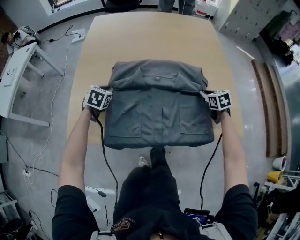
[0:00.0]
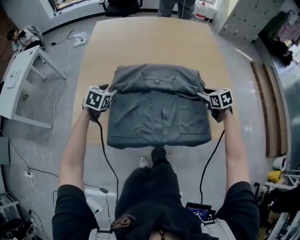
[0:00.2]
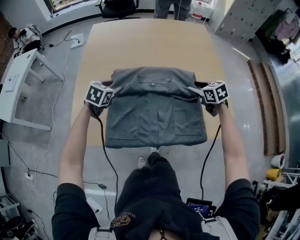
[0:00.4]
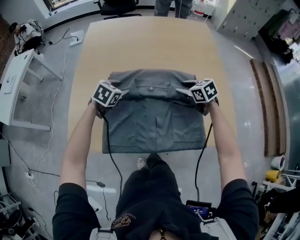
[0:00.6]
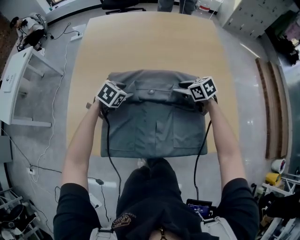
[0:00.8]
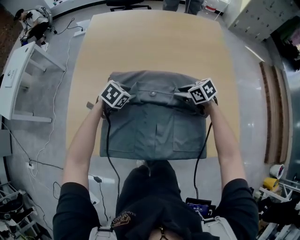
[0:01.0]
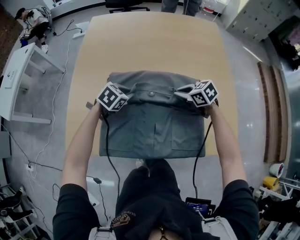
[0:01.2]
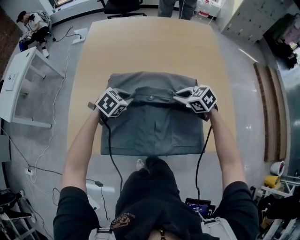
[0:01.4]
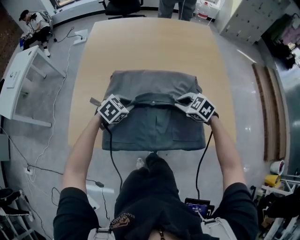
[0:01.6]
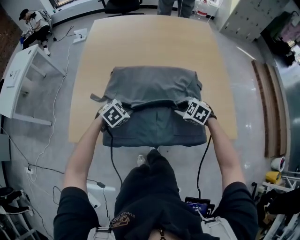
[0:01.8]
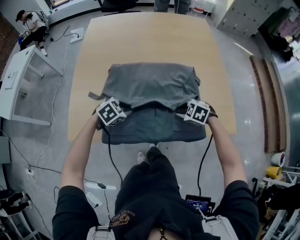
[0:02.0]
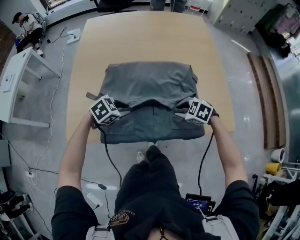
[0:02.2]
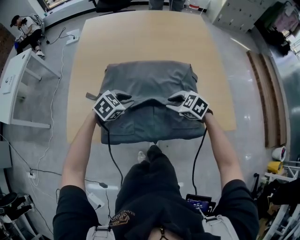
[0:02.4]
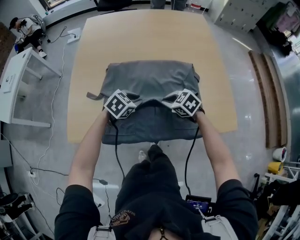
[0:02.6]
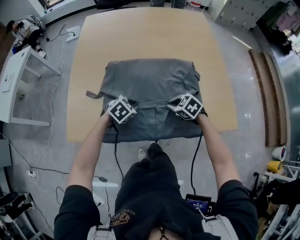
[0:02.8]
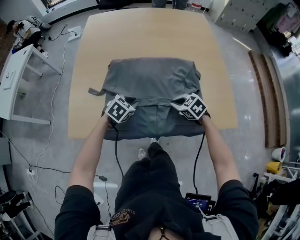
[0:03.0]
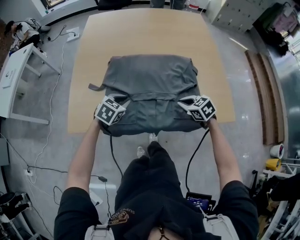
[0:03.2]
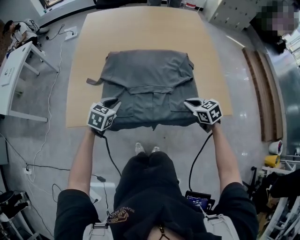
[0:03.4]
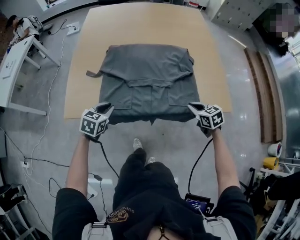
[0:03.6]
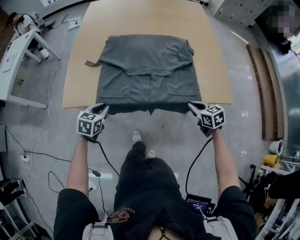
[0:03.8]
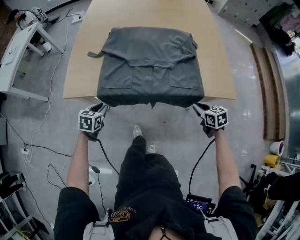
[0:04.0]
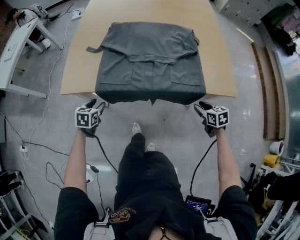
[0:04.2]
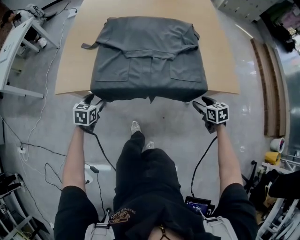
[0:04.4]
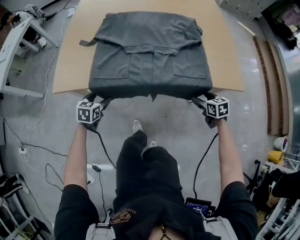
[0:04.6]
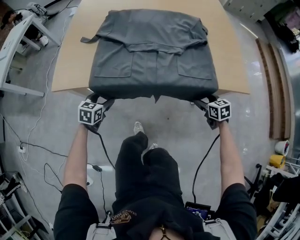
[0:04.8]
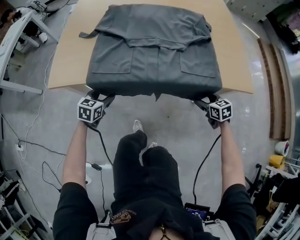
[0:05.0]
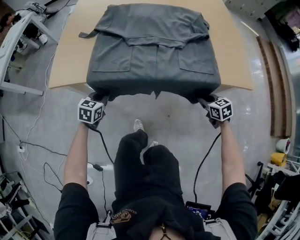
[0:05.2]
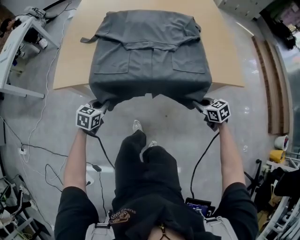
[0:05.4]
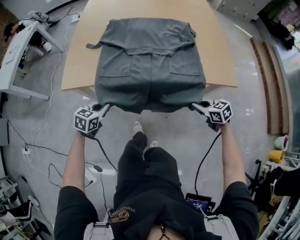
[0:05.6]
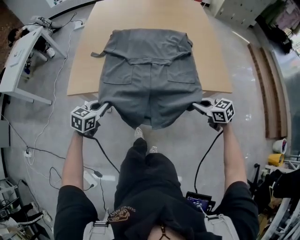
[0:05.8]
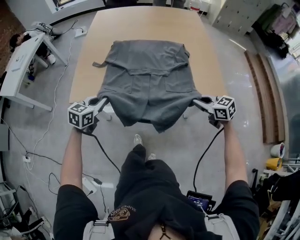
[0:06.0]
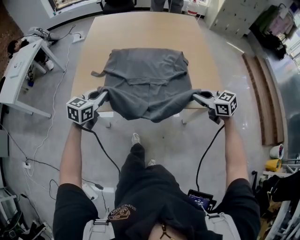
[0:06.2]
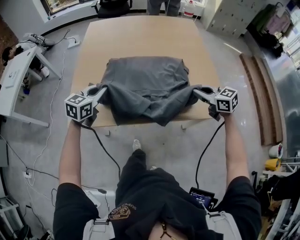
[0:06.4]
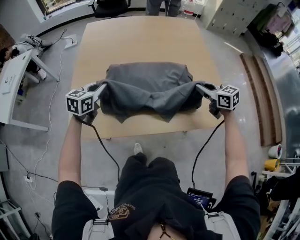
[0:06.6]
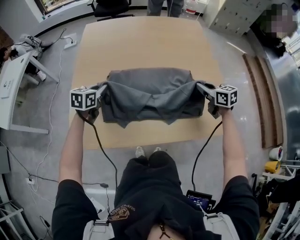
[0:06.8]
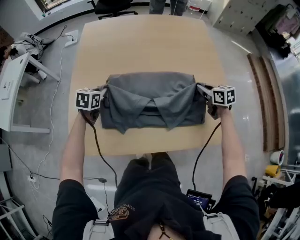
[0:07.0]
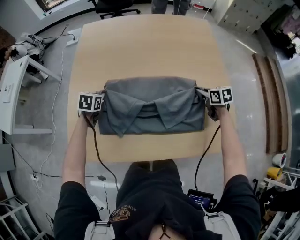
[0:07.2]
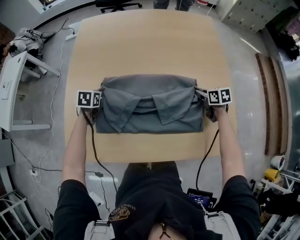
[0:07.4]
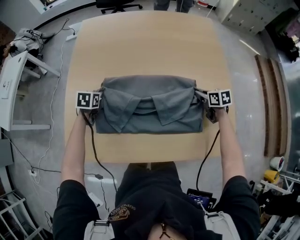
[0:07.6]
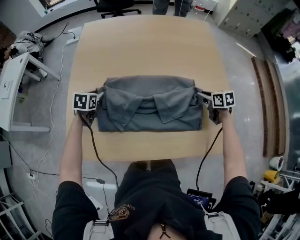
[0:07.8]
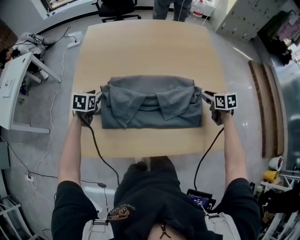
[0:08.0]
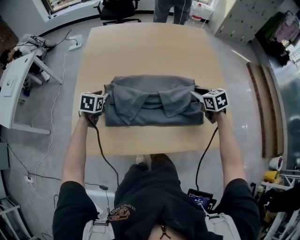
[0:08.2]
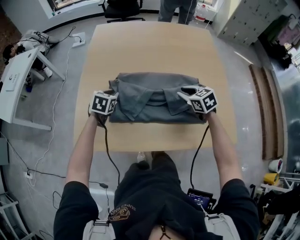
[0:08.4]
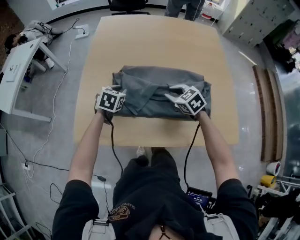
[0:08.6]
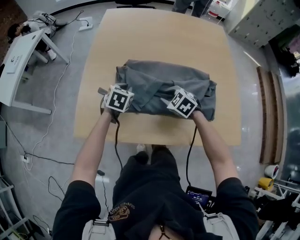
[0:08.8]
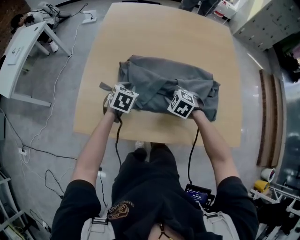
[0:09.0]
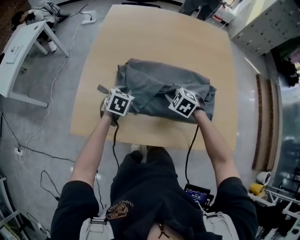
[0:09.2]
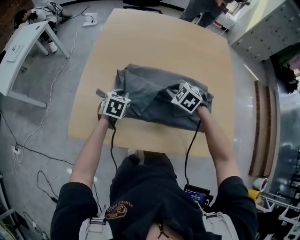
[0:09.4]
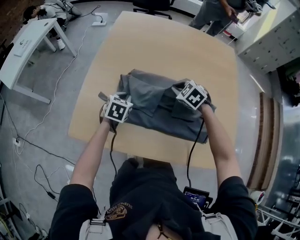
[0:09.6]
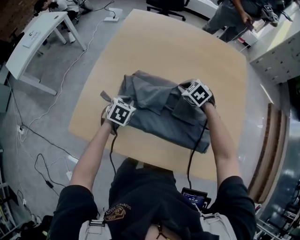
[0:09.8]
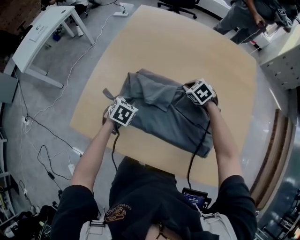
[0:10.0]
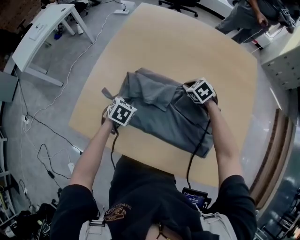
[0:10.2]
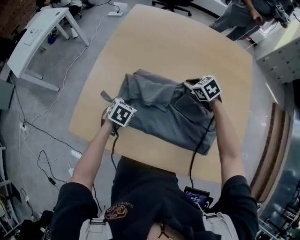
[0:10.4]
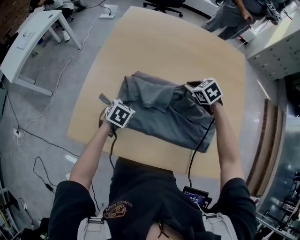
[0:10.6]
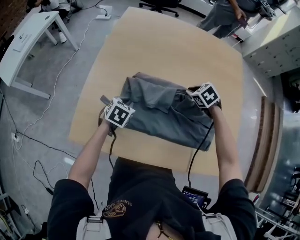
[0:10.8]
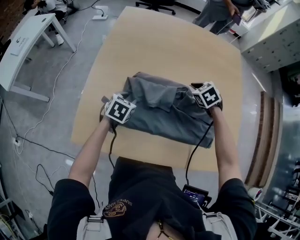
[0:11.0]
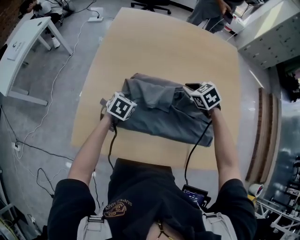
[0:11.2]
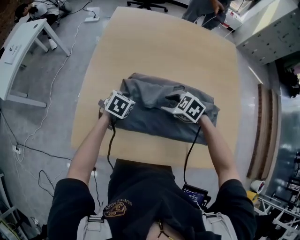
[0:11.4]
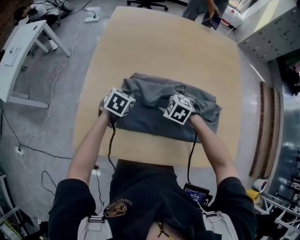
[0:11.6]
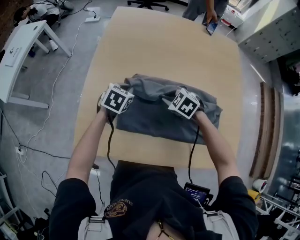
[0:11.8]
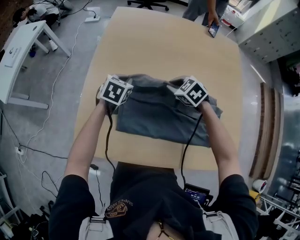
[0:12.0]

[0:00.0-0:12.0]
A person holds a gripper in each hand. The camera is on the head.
0:00.0 to 0:01.6: The left gripper goes up and down, about 10 cm each way, reversing 2 times, rotates some 30 degrees, and opens and closes again. Meanwhile the right gripper swings up and down, about 10 cm each way, with 2 reversals, turns by roughly 40 degrees, and opens and closes again.
0:01.6 to 0:03.0: The left gripper shifts by about 5 cm. Meanwhile the right gripper swings up and down, approximately 5 cm each way, with 2 reversals.
0:03.0 to 0:04.4: The right gripper travels backward, to the right and downward by approximately 25 cm, swivels roughly 30 degrees, and opens its fingers. Meanwhile the left gripper travels to the left, backward and downward by roughly 25 cm, swivels about 30 degrees, and opens.
0:04.4 to 0:06.0: The grippers both shift upward by some 20 cm. The right gripper swivels approximately 30 degrees, and closes. Meanwhile the left gripper rotates some 20 degrees, and closes up.
0:06.0 to 0:07.6: Both grippers travel together forward, about 35 cm. The right gripper rotates some 30 degrees. The left gripper rotates roughly 30 degrees.
0:07.6 to 0:09.0: The right gripper shifts roughly 30 cm to the left, and rolls counterclockwise, seen from behind, by some 70 degrees, while the left gripper travels backward by roughly 10 cm, and opens, then closes once more.
0:09.0 to 0:10.4: The right gripper travels forward and to the right by roughly 20 cm, and rotates some 20 degrees.
0:10.4 to 0:12.0: The left gripper goes roughly 15 cm forward and upward, and opens, then closes once more; the right gripper heads to the left, covering approximately 10 cm, and opens and closes again.

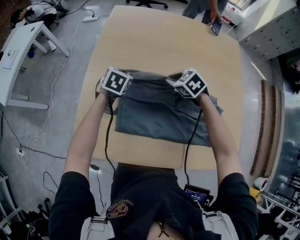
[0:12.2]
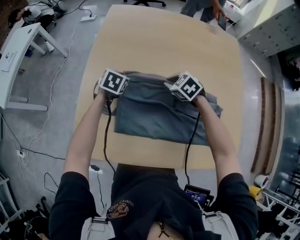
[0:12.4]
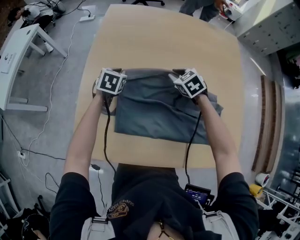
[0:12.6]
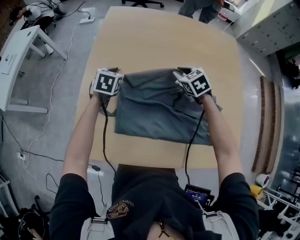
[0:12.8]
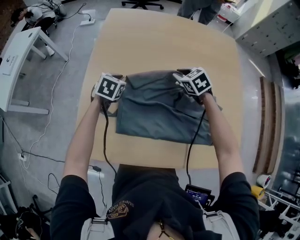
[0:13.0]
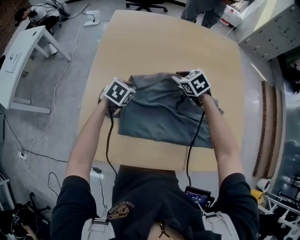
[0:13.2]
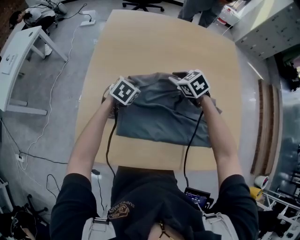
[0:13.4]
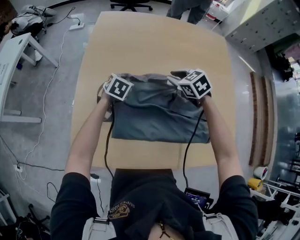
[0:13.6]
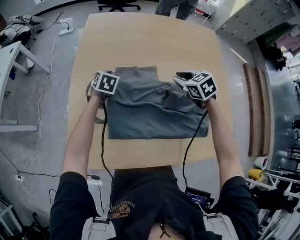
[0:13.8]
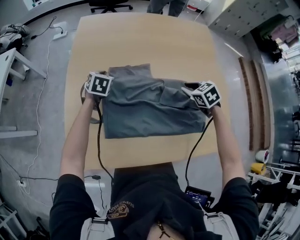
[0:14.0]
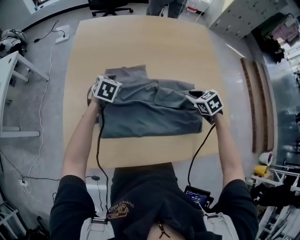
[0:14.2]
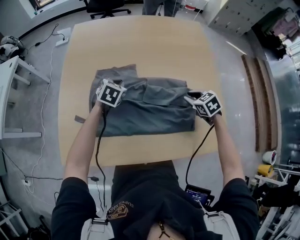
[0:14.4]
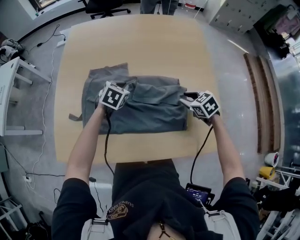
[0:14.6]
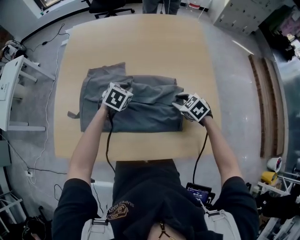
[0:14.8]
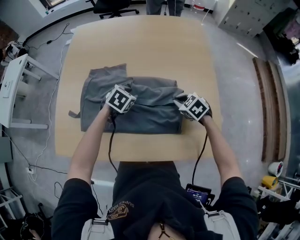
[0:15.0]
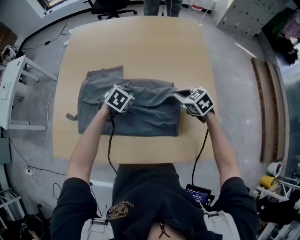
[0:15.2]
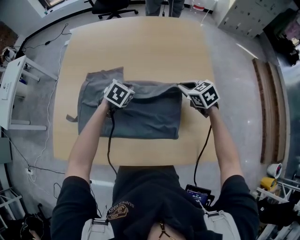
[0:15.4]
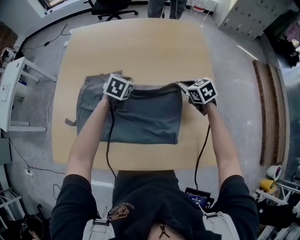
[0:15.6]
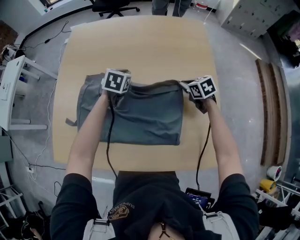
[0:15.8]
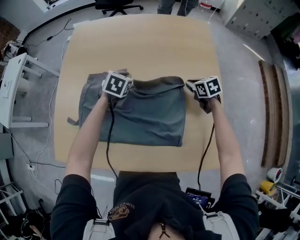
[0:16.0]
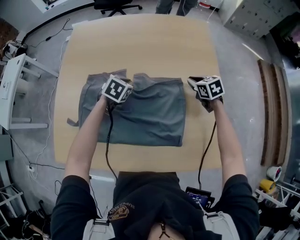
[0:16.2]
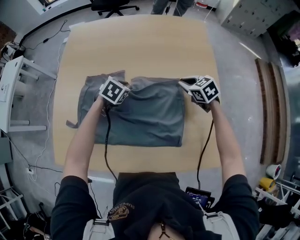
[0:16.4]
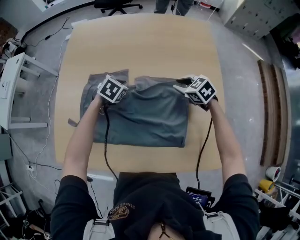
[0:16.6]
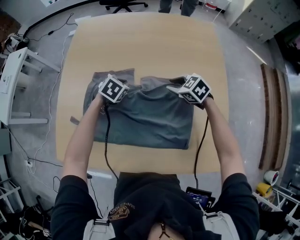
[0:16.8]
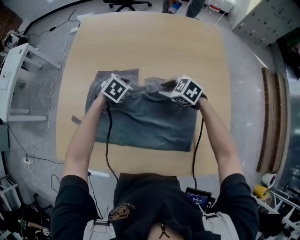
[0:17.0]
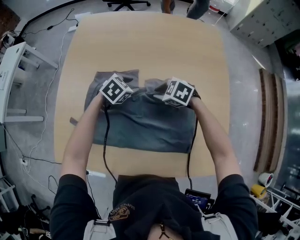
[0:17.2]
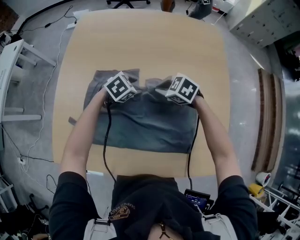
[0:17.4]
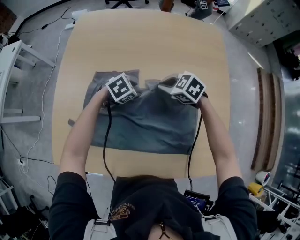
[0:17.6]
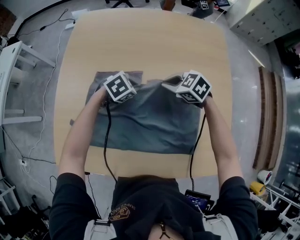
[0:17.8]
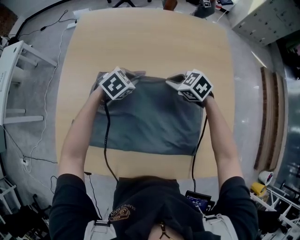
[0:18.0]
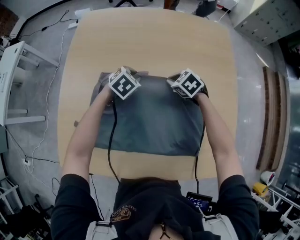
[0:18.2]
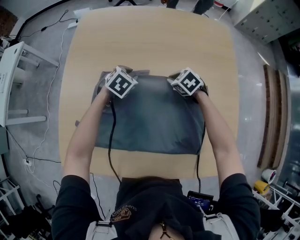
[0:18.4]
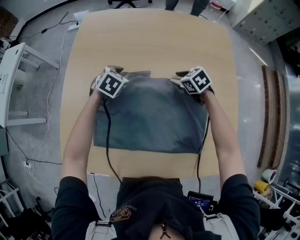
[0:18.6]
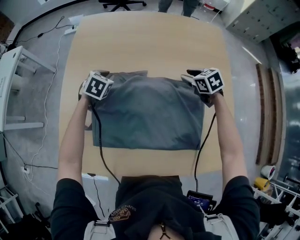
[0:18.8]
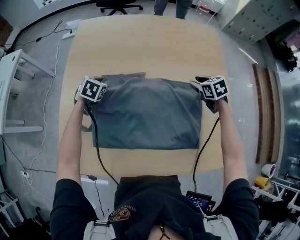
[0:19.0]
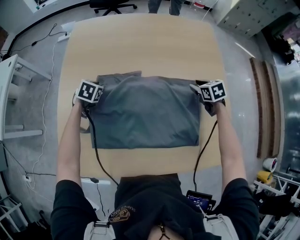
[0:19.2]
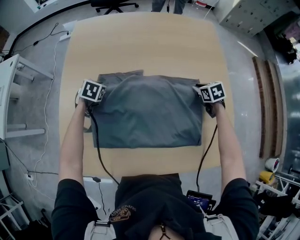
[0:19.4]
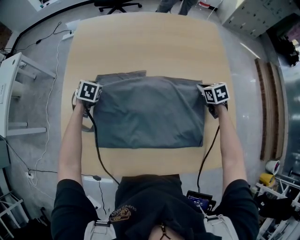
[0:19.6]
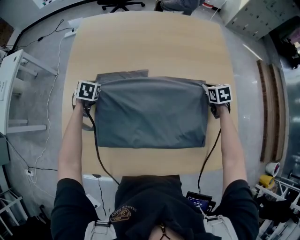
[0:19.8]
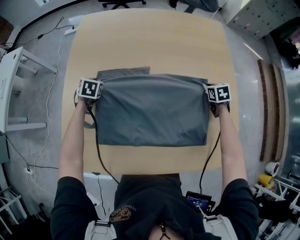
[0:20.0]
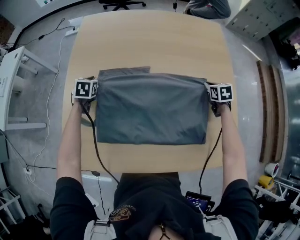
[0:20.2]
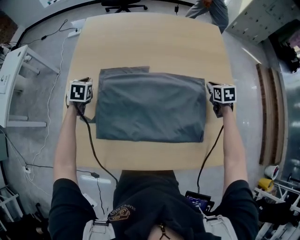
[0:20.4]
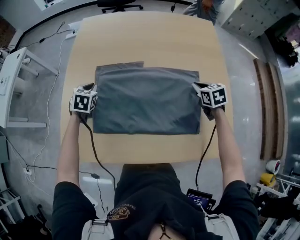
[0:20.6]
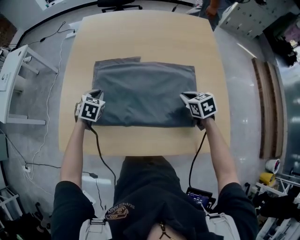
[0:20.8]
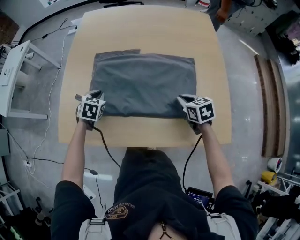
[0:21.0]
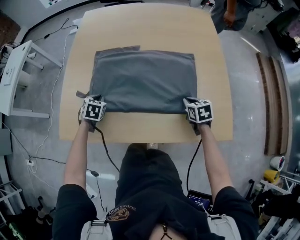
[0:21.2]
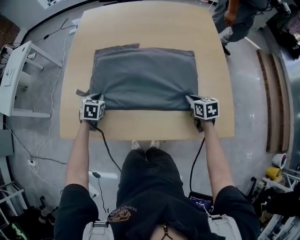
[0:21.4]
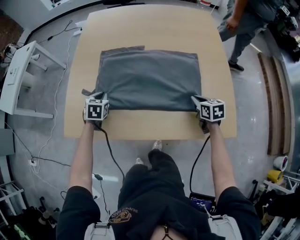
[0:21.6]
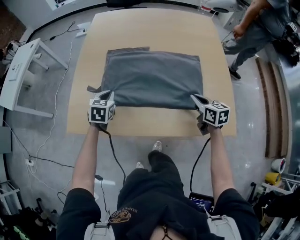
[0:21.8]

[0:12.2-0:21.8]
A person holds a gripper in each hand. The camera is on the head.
0:12.2 to 0:13.8: The right gripper moves to the right, about 10 cm, and changes its angle by approximately 20 degrees; the left gripper heads forward, covering roughly 5 cm.
0:13.8 to 0:15.4: The left gripper goes about 30 cm to the right and backward, rotates approximately 20 degrees, and opens, then closes once more. Meanwhile the right gripper shifts approximately 25 cm to the right.
0:15.4 to 0:17.0: The right gripper is displaced to the left by about 15 cm, turns by approximately 30 degrees, and opens; the left gripper travels to the left and forward by some 10 cm.
0:17.0 to 0:18.6: The right gripper shifts by about 10 cm, changes its angle by roughly 20 degrees, and closes, then reopens, while the left gripper shifts by some 10 cm, and opens its fingers.
0:18.6 to 0:20.2: The left gripper goes approximately 15 cm to the left, and changes its angle by approximately 20 degrees, while the right gripper shifts roughly 20 cm to the right, changes its angle by approximately 40 degrees, and closes.
0:20.2 to 0:21.8: The left gripper is displaced backward by some 25 cm. Meanwhile the right gripper shifts some 30 cm backward and to the left, and turns by about 30 degrees.

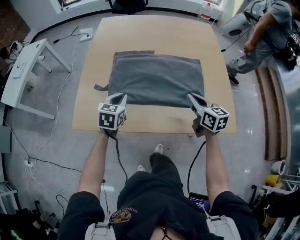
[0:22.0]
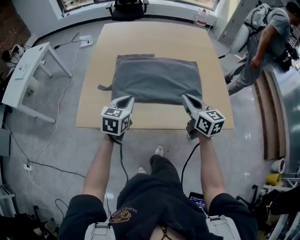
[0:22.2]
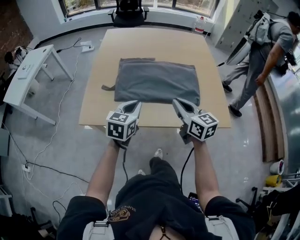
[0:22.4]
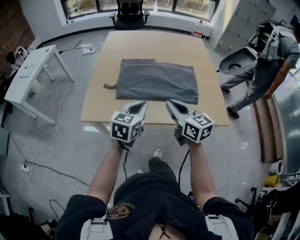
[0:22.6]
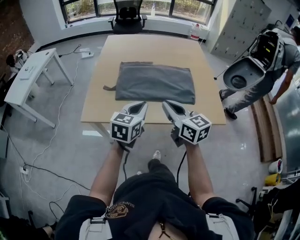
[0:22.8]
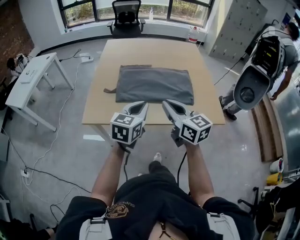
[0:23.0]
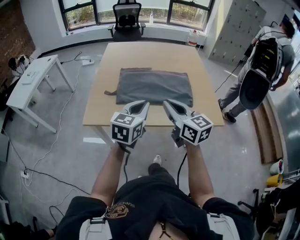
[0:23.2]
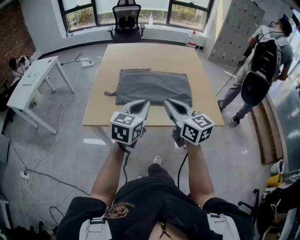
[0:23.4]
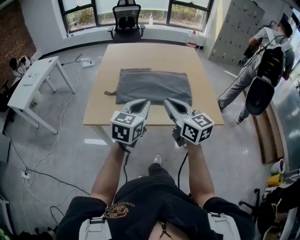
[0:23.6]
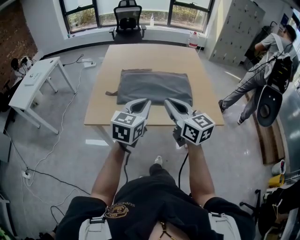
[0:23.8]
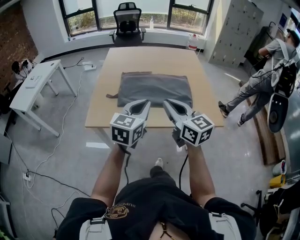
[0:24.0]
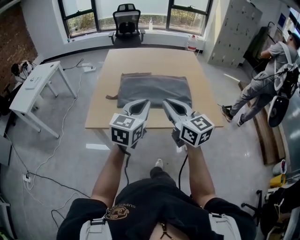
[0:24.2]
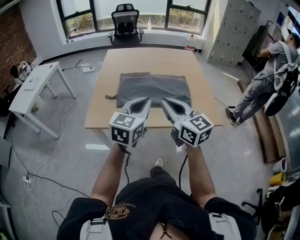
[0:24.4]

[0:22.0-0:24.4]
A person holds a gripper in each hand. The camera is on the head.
0:22.0 to 0:23.2: The left gripper heads backward and upward, covering roughly 25 cm, and rotates approximately 20 degrees, while the right gripper goes about 30 cm backward, upward and to the left.
0:23.2 to 0:24.4: The right gripper shifts by some 5 cm; the left gripper is displaced upward by approximately 5 cm.
